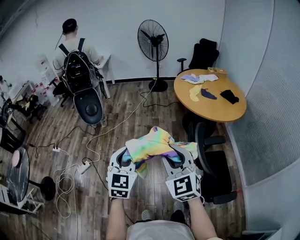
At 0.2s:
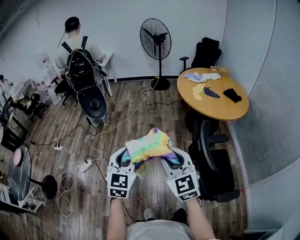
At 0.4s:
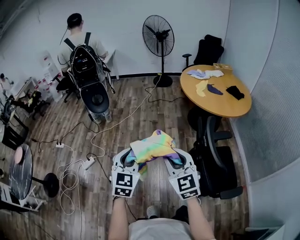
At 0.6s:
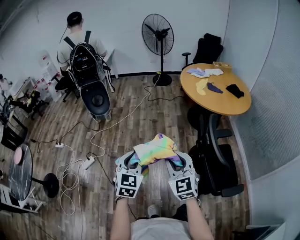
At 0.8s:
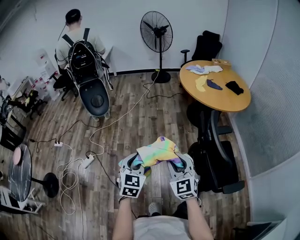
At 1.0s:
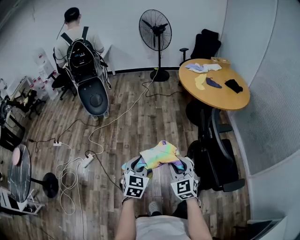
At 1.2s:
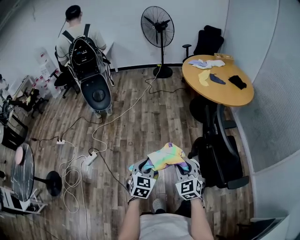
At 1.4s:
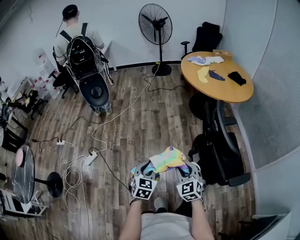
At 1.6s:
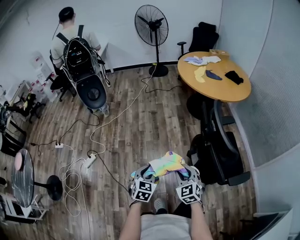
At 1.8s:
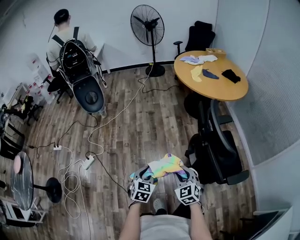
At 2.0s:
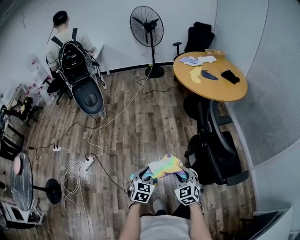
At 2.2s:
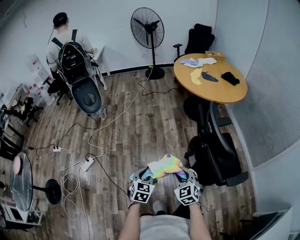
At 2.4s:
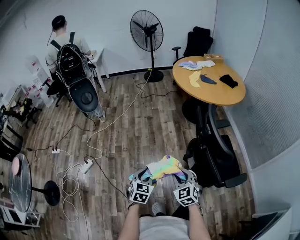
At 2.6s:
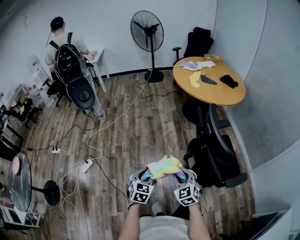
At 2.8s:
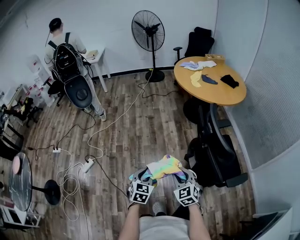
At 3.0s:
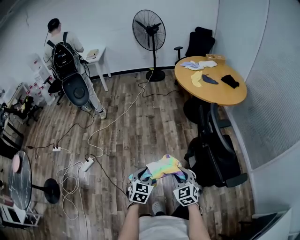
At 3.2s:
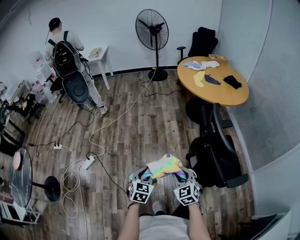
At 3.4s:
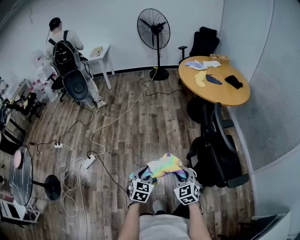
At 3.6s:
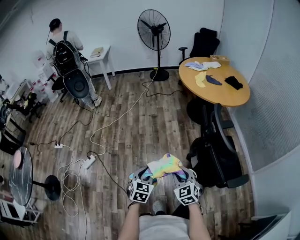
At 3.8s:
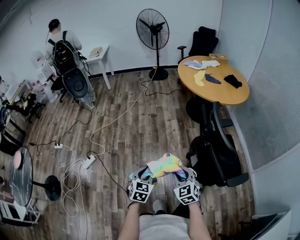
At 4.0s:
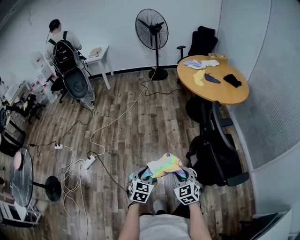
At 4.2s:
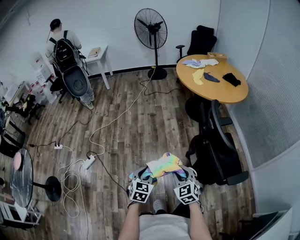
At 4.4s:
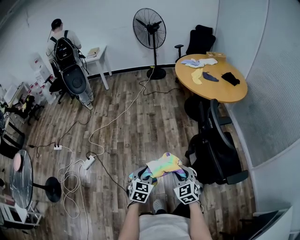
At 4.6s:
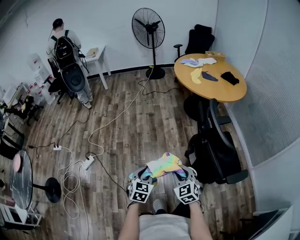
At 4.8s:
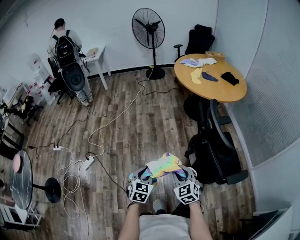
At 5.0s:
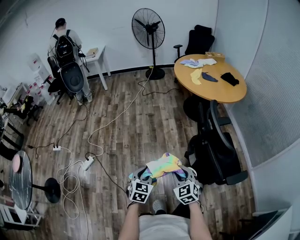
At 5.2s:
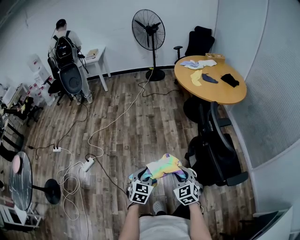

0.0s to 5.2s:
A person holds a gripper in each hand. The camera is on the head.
0.0s to 1.8s: Both grippers travel together downward, roughly 30 cm. The right gripper turns by roughly 20 degrees. The left gripper rotates about 30 degrees.
1.8s to 5.2s: There are only small adjustments of the grippers.

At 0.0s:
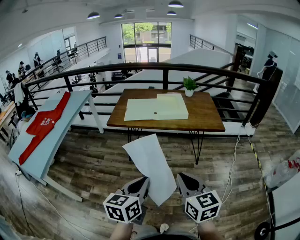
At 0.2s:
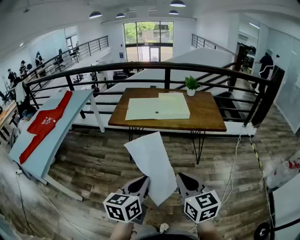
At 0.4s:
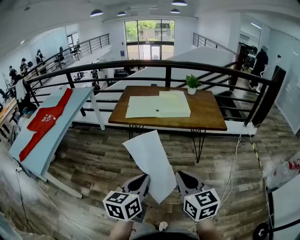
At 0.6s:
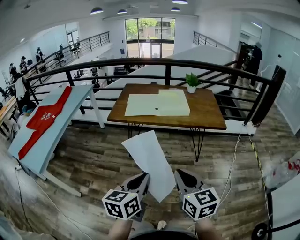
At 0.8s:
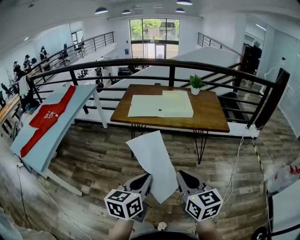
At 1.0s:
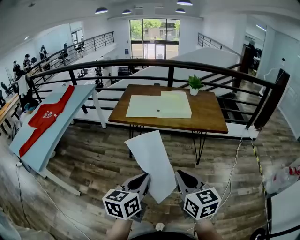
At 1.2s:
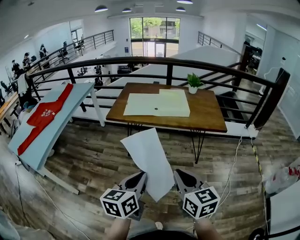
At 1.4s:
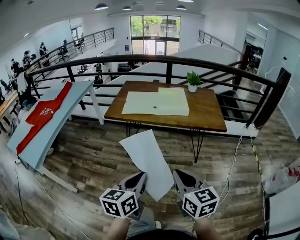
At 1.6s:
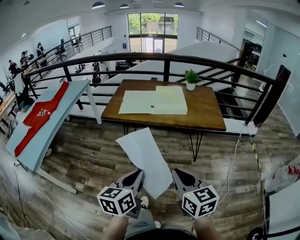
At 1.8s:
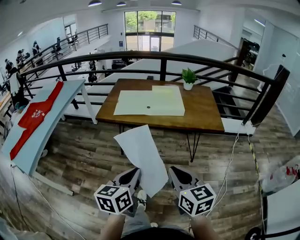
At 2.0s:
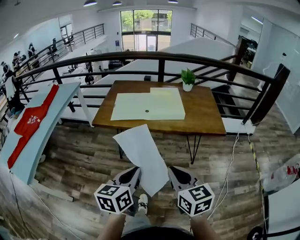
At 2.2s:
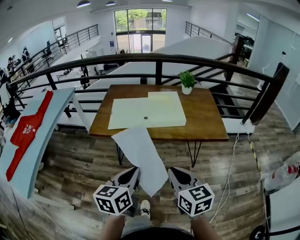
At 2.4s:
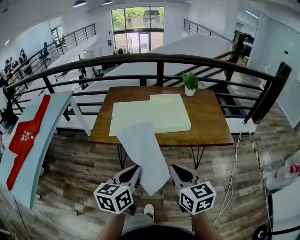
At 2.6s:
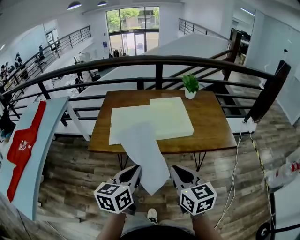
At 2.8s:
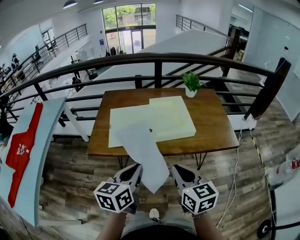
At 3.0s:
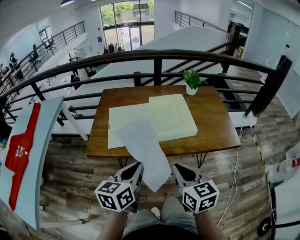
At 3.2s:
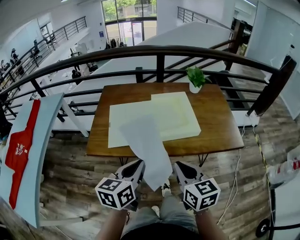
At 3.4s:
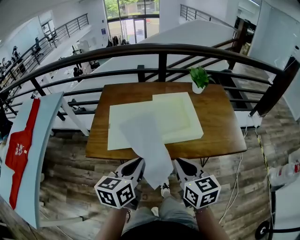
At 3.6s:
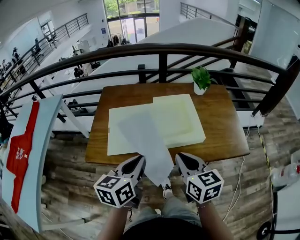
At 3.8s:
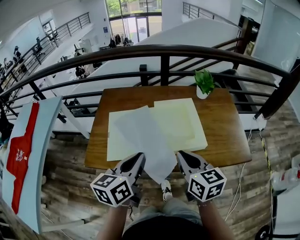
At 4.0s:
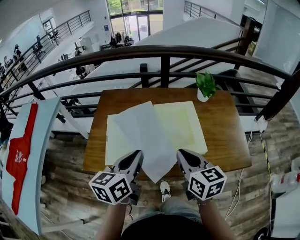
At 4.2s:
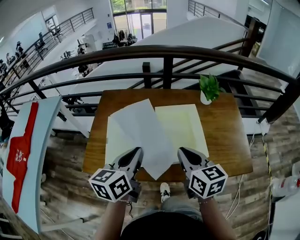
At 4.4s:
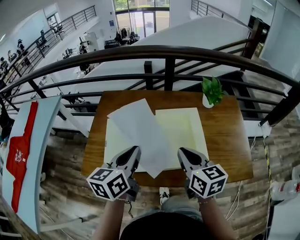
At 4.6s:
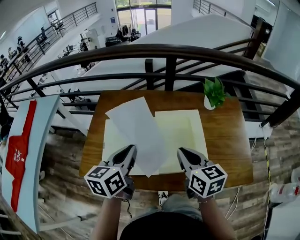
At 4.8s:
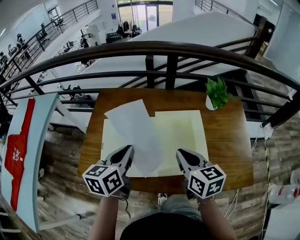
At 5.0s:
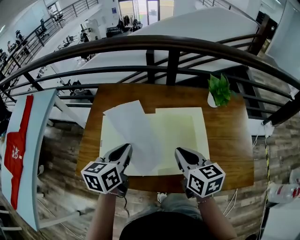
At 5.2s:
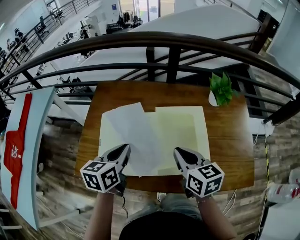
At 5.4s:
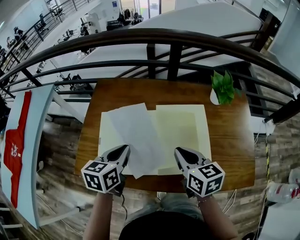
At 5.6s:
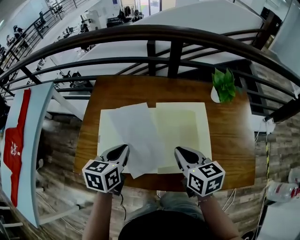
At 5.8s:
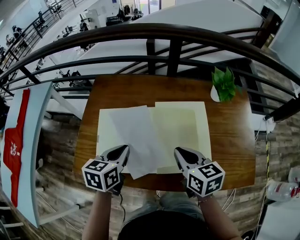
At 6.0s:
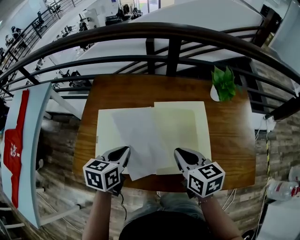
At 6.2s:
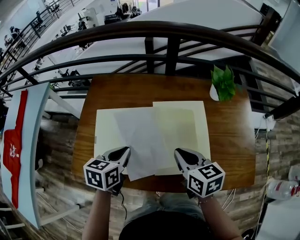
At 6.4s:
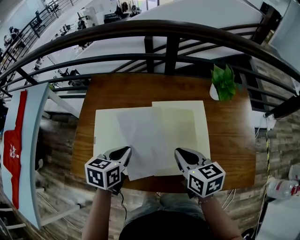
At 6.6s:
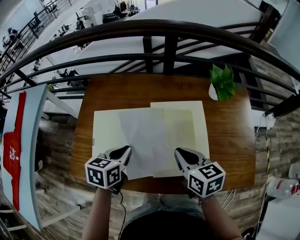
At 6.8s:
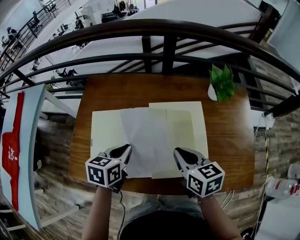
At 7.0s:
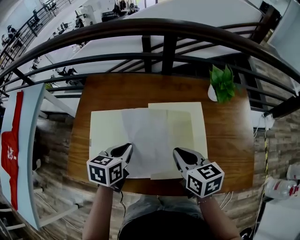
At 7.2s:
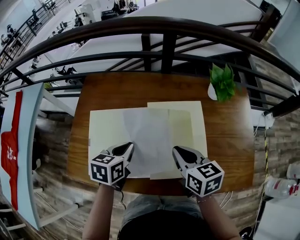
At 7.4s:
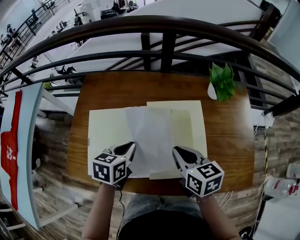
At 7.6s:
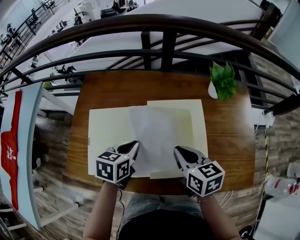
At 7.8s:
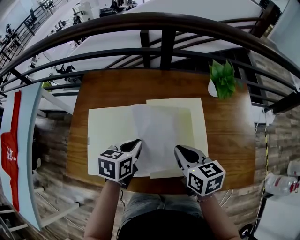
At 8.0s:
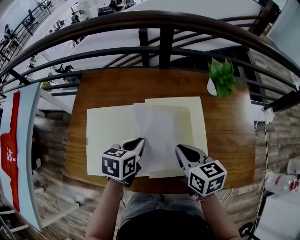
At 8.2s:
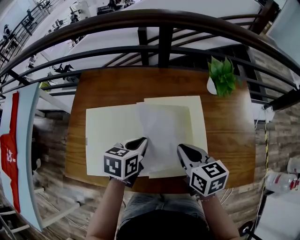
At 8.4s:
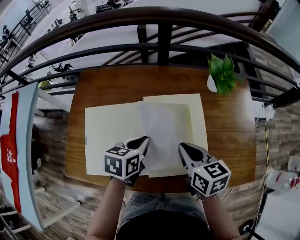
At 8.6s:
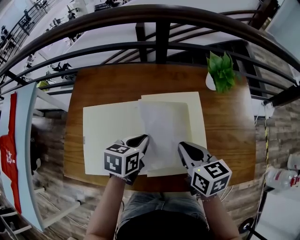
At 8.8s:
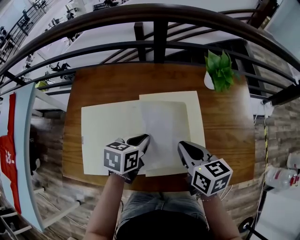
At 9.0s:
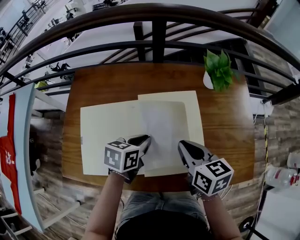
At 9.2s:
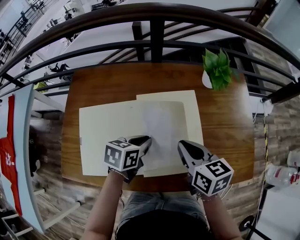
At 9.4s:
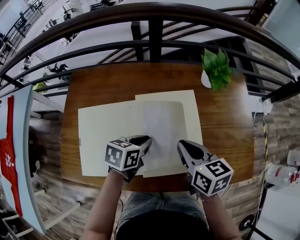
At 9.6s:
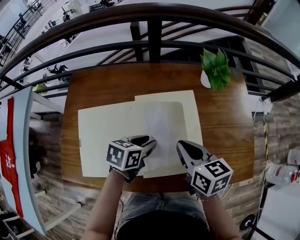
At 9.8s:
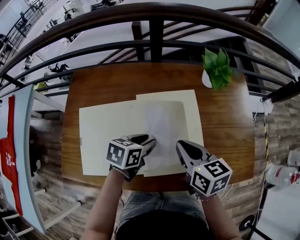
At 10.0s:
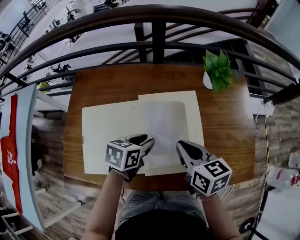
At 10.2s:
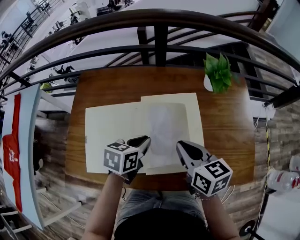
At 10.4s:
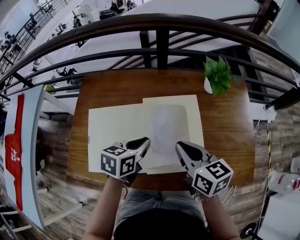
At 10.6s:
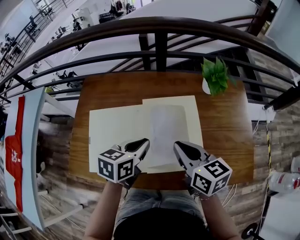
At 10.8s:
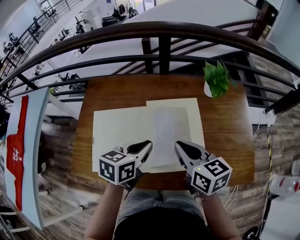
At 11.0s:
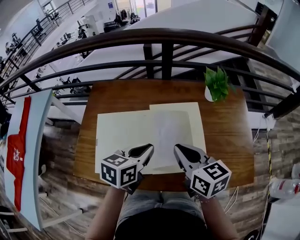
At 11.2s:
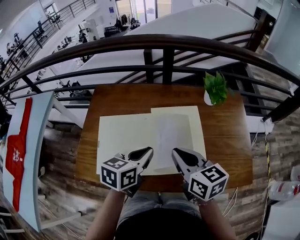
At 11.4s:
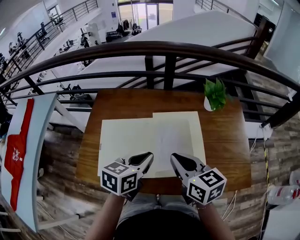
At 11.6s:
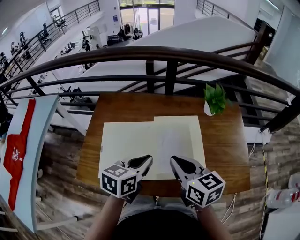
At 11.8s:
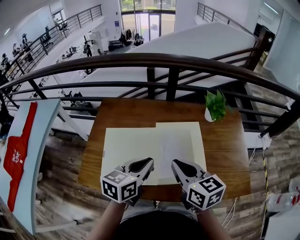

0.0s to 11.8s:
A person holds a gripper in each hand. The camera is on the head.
0.0s to 1.4s: The left gripper moves roughly 5 cm; the right gripper ends up roughly 5 cm from where it was.
1.4s to 3.0s: Both grippers travel together forward, roughly 35 cm.
3.0s to 4.4s: The grippers both shift forward by roughly 25 cm.
4.4s to 6.0s: The right gripper moves downward, some 5 cm. The left gripper travels downward and forward by approximately 15 cm, and rotates about 20 degrees.
6.0s to 7.4s: The left gripper moves roughly 5 cm.
7.4s to 8.8s: The left gripper moves to the right, approximately 5 cm.
8.8s to 10.4s: The left gripper opens, then closes again.
10.4s to 11.8s: The left gripper travels upward by about 10 cm. Meanwhile the right gripper moves upward and to the left, approximately 10 cm.

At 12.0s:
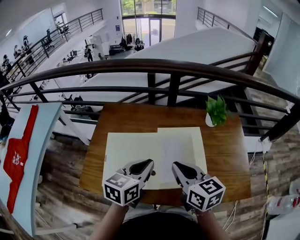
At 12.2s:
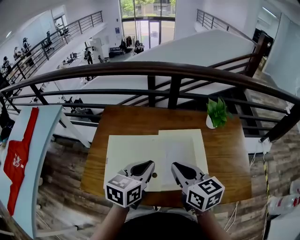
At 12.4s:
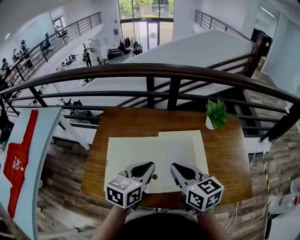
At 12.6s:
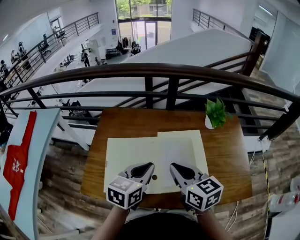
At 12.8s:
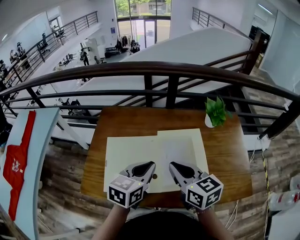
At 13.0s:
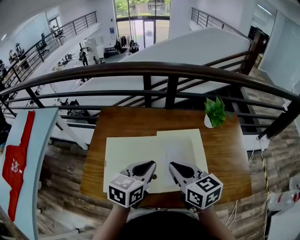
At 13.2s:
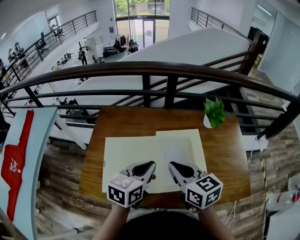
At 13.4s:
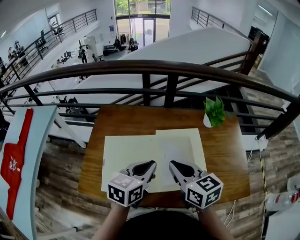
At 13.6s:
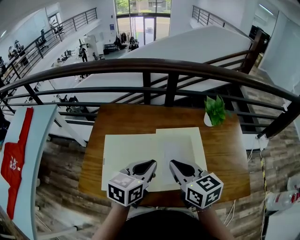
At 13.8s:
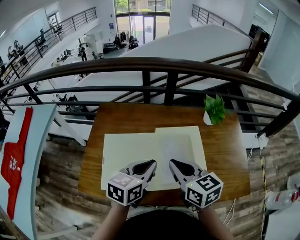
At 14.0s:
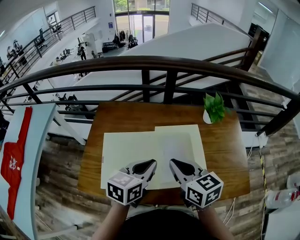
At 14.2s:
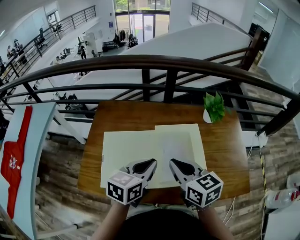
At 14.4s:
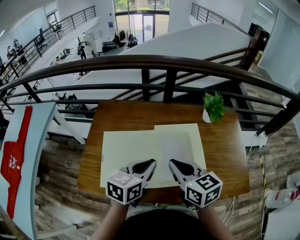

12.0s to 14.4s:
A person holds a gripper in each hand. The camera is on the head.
12.0s to 14.4s: The grippers stay close to where they were, moving slightly.

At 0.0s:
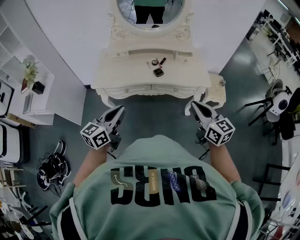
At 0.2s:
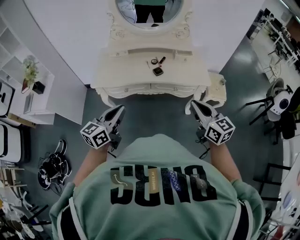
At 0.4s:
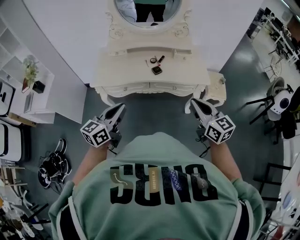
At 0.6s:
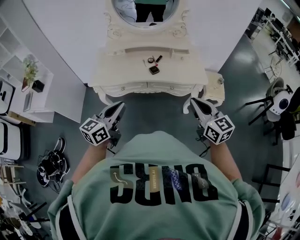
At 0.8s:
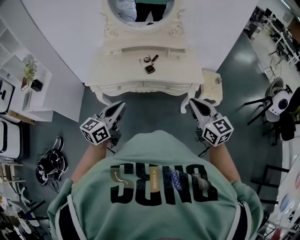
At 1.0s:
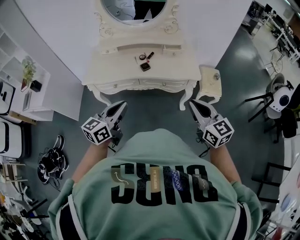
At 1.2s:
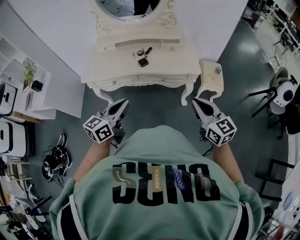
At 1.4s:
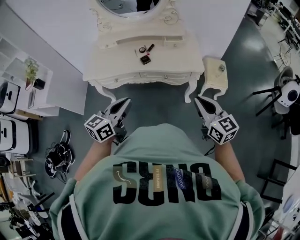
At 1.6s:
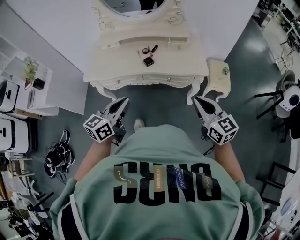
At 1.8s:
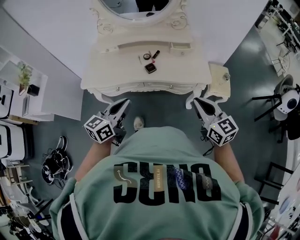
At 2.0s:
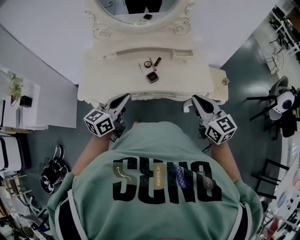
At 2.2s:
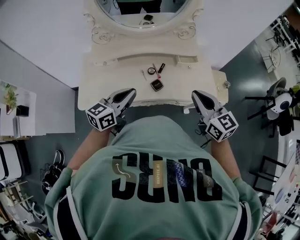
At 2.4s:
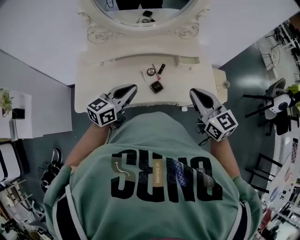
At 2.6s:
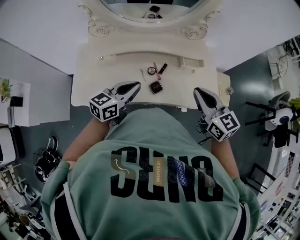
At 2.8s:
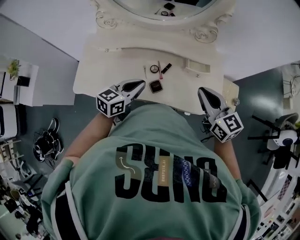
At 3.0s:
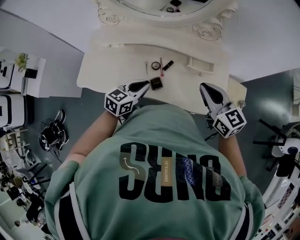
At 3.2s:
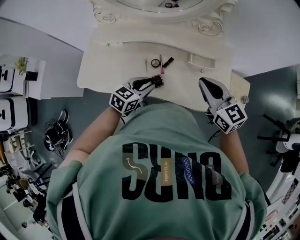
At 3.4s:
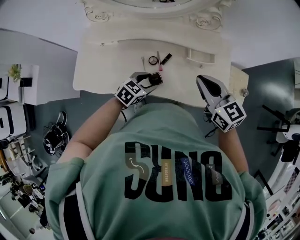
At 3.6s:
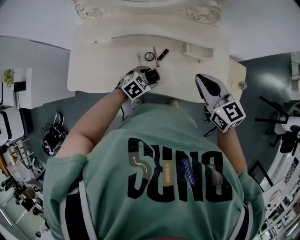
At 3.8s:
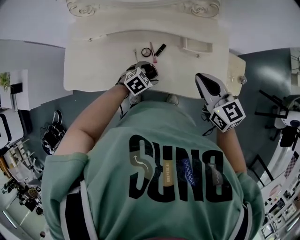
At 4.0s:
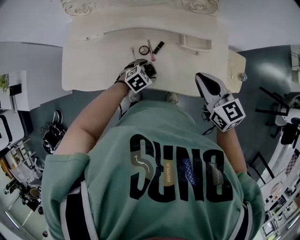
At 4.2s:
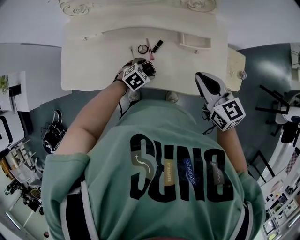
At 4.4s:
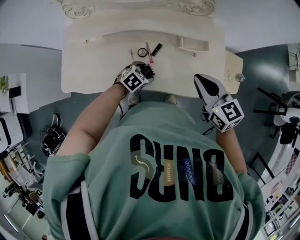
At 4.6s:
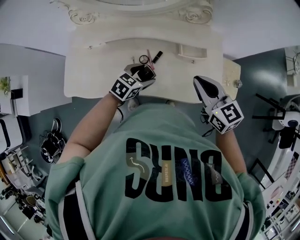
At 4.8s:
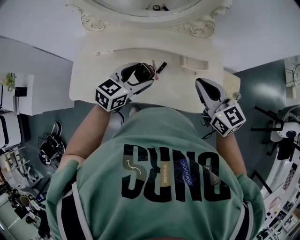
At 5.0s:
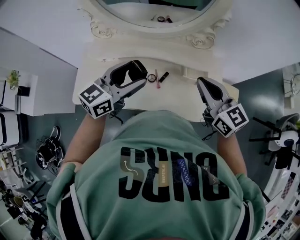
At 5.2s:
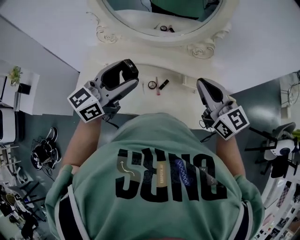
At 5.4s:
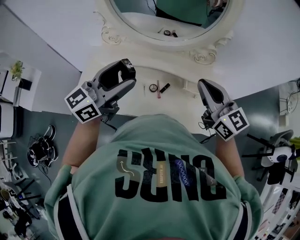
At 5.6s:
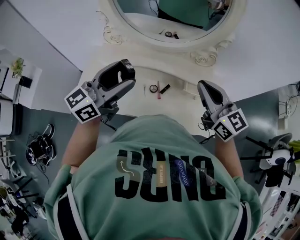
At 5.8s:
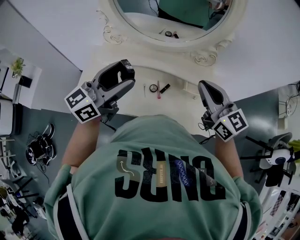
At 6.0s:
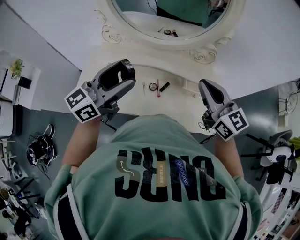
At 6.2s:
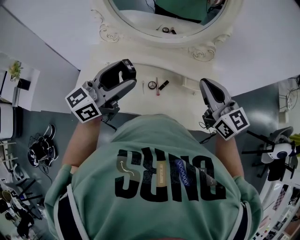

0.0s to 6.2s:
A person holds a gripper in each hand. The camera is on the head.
0.0s to 1.6s: The grippers both shift to the right by approximately 15 cm.
1.6s to 3.2s: The left gripper goes roughly 35 cm forward and downward, and changes its angle by about 30 degrees. Meanwhile the right gripper travels forward by about 35 cm.
3.2s to 4.6s: The left gripper travels downward and back again, about 15 cm each way, and opens up.
4.6s to 6.2s: The left gripper moves upward, about 30 cm, and tips its fingers upward by roughly 50 degrees. The right gripper heads upward, covering approximately 15 cm.
